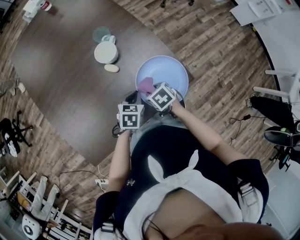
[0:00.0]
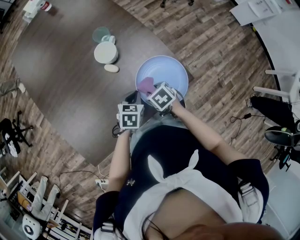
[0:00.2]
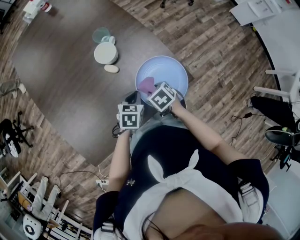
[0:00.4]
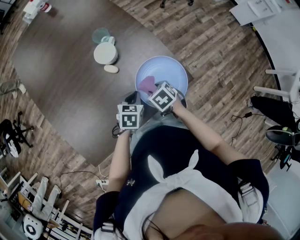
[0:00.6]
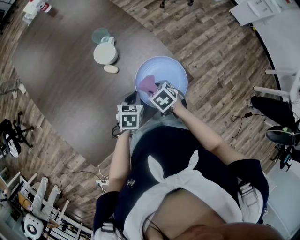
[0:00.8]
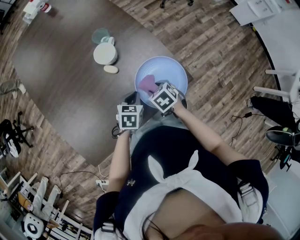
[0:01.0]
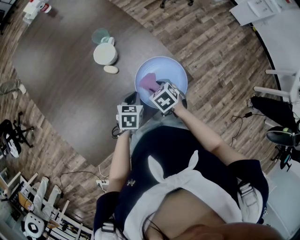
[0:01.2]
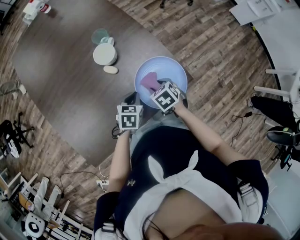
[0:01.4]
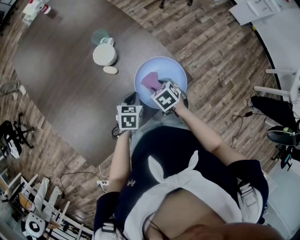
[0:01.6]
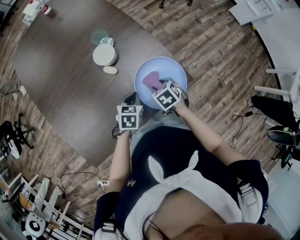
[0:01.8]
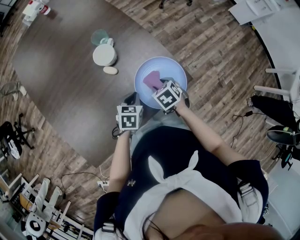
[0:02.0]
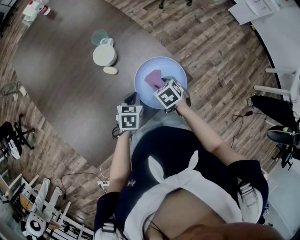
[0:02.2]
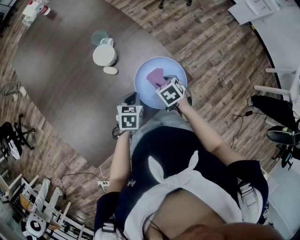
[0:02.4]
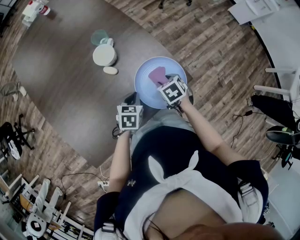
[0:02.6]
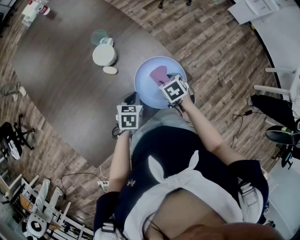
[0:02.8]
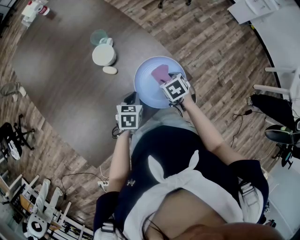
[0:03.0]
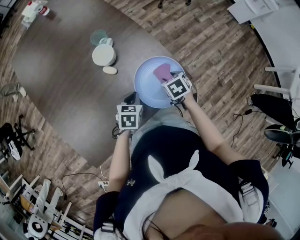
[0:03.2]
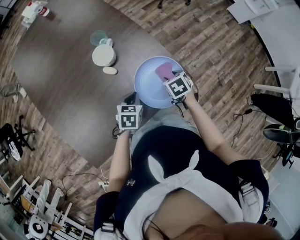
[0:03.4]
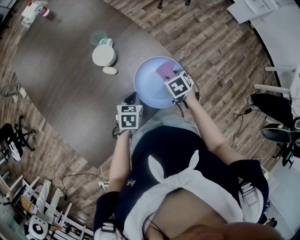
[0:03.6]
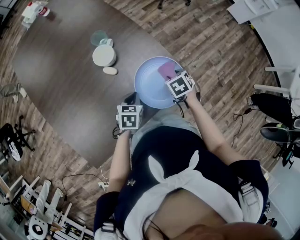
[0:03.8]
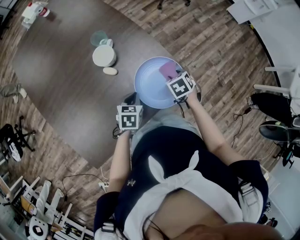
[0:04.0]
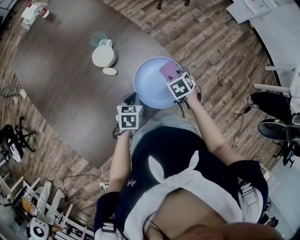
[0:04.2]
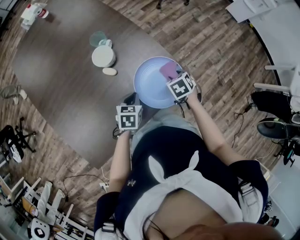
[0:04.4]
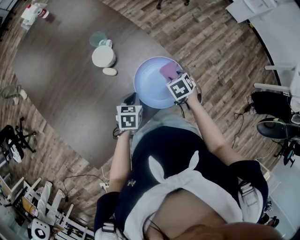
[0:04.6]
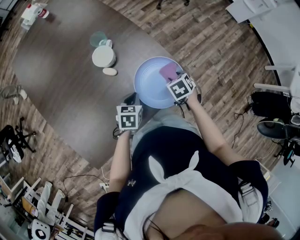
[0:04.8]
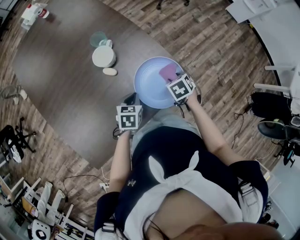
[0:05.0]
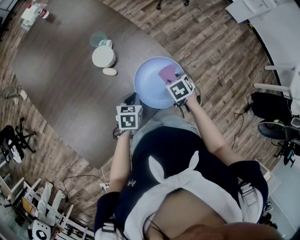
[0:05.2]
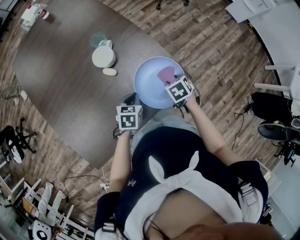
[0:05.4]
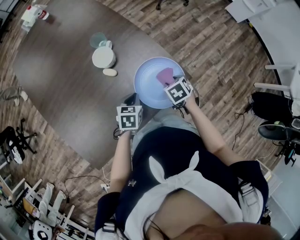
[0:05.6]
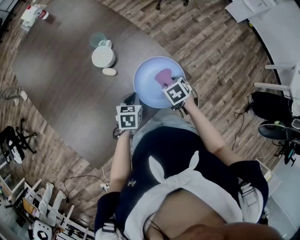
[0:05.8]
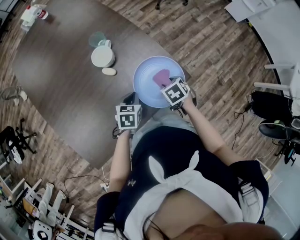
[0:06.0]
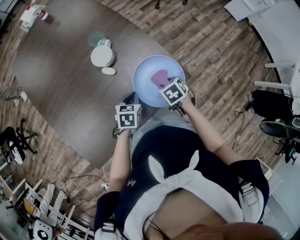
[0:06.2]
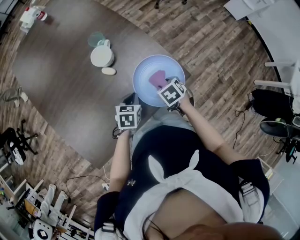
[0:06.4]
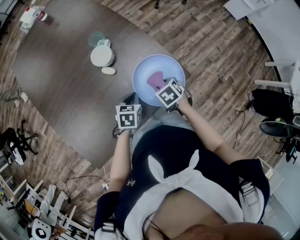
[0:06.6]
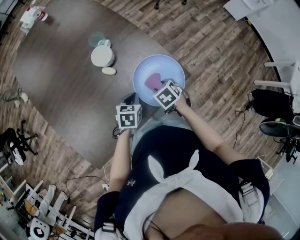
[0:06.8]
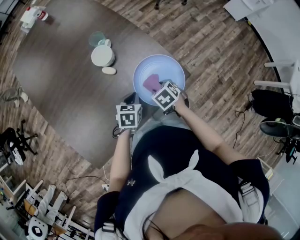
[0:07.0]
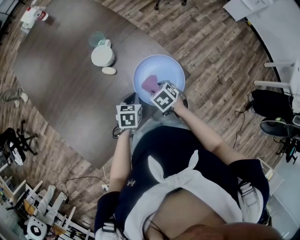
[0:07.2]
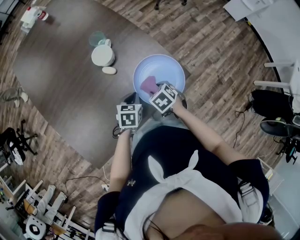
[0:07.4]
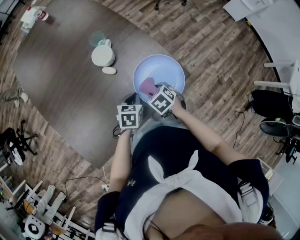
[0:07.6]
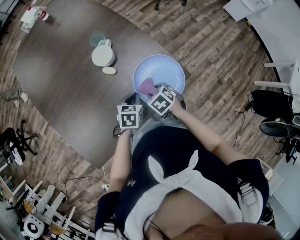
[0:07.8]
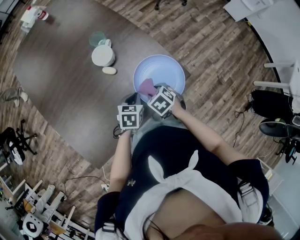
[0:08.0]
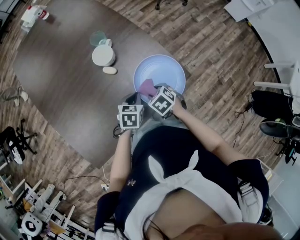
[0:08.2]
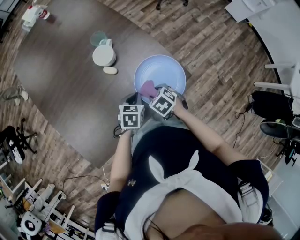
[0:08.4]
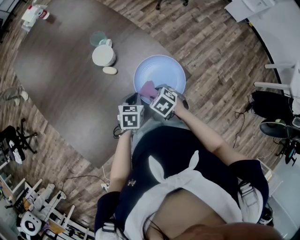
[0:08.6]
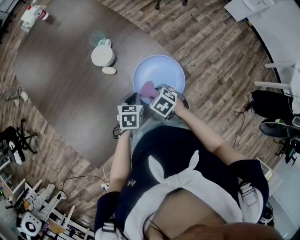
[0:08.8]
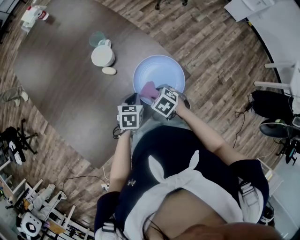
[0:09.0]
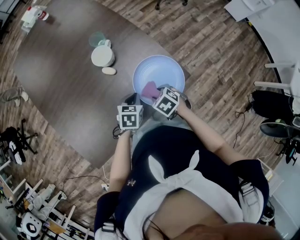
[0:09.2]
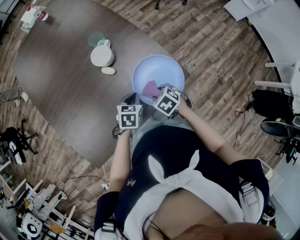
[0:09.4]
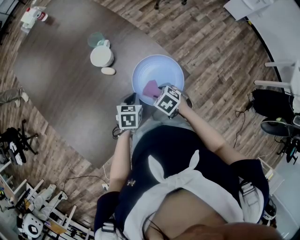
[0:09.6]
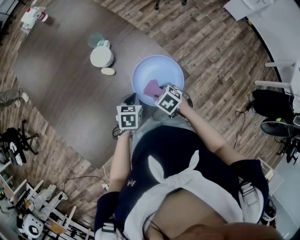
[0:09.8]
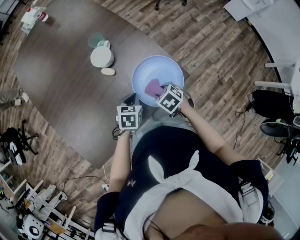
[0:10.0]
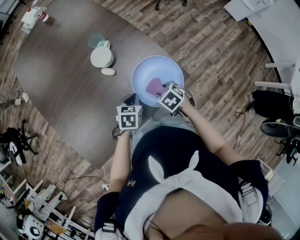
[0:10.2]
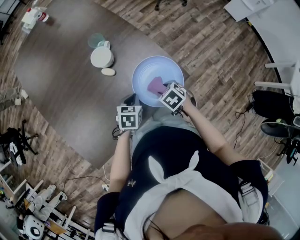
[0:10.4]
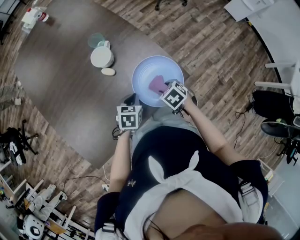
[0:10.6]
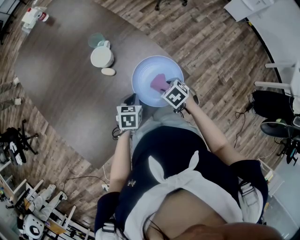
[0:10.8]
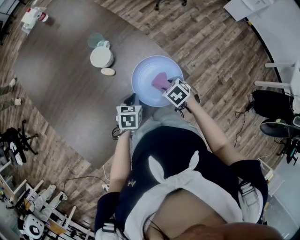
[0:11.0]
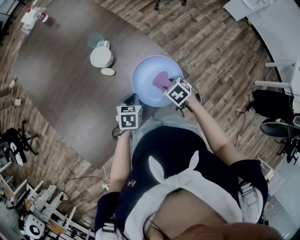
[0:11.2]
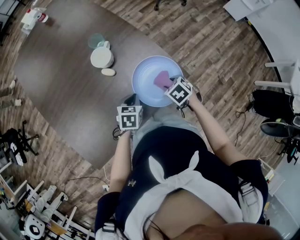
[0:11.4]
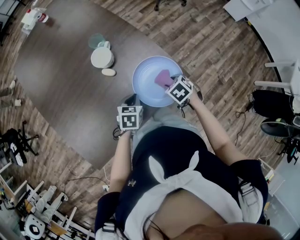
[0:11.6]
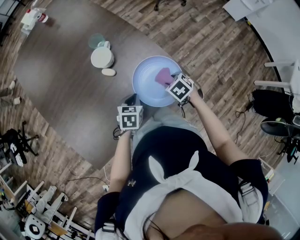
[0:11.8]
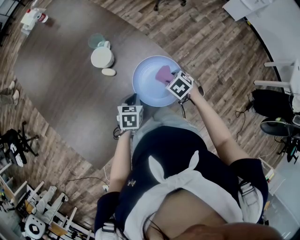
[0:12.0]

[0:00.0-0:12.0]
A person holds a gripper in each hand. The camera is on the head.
0:00.0 to 0:01.6: There are only small adjustments of the grippers.
0:01.6 to 0:03.0: The right gripper moves to the right, approximately 5 cm.
0:03.0 to 0:04.4: The grippers move only a little.
0:04.4 to 0:06.0: The right gripper moves some 5 cm.
0:06.0 to 0:07.6: The right gripper goes some 10 cm to the left.
0:07.6 to 0:09.0: The grippers stay close to where they were, moving slightly.
0:09.0 to 0:10.4: The right gripper shifts by roughly 5 cm.
0:10.4 to 0:12.0: The right gripper goes some 5 cm to the right.

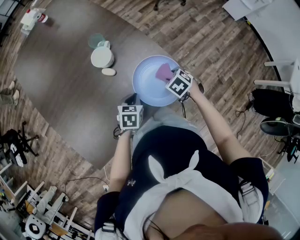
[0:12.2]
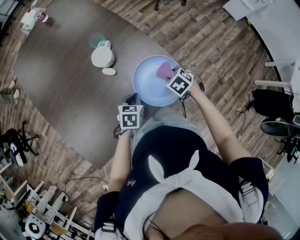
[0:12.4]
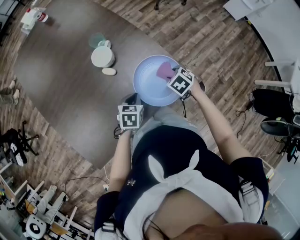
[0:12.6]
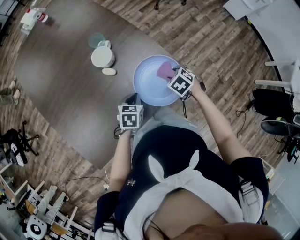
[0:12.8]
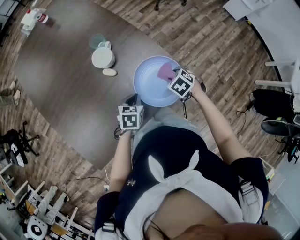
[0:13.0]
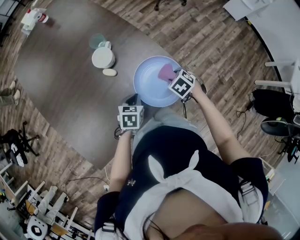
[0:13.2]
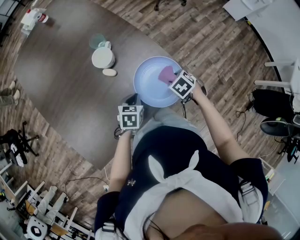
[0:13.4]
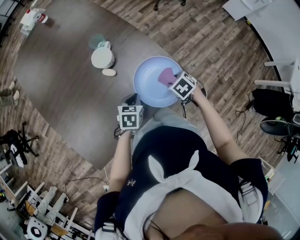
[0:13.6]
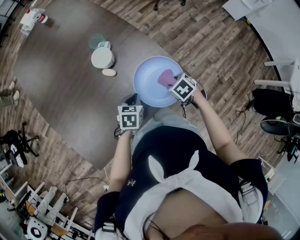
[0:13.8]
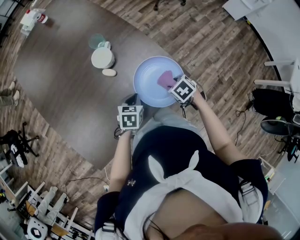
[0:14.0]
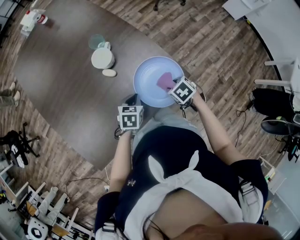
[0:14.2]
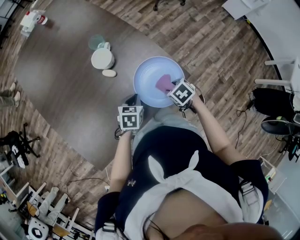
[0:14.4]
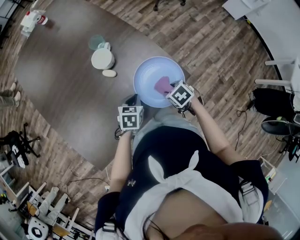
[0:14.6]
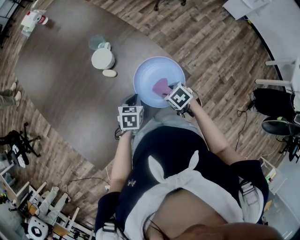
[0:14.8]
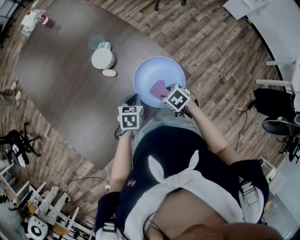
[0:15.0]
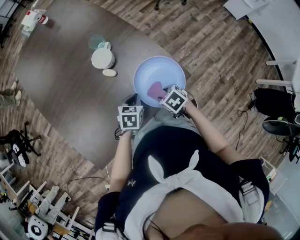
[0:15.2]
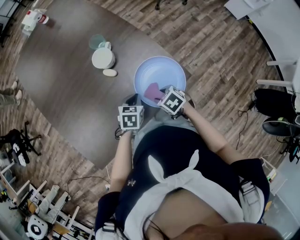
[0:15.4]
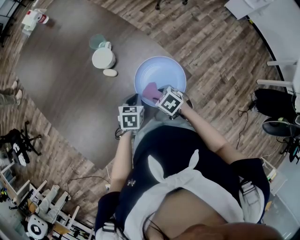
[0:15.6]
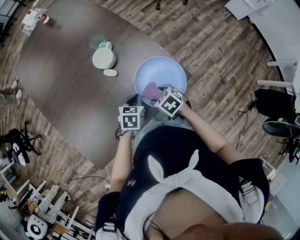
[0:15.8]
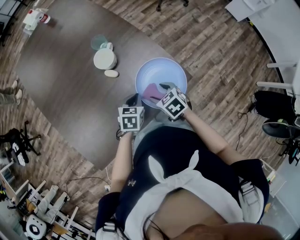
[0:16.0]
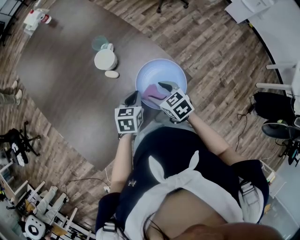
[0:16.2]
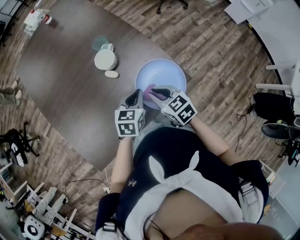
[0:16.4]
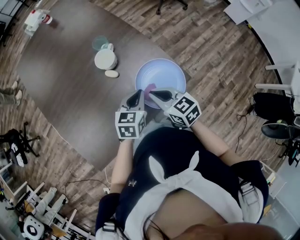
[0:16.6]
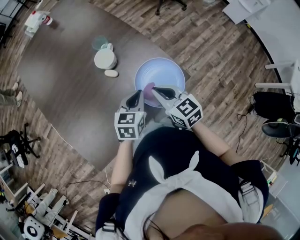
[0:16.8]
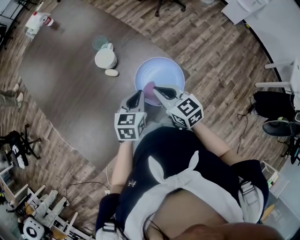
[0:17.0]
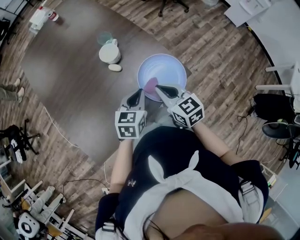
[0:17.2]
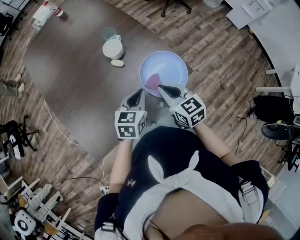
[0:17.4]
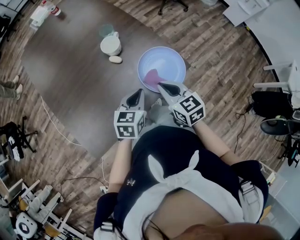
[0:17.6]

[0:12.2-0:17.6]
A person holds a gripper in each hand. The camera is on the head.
0:12.2 to 0:13.6: The grippers move only a little.
0:13.6 to 0:15.0: The right gripper moves roughly 5 cm.
0:15.0 to 0:16.2: The two grippers go roughly 5 cm upward. The right gripper turns by approximately 30 degrees.
0:16.2 to 0:17.6: The right gripper goes roughly 10 cm upward and backward, and closes its fingers; the left gripper heads backward and upward, covering about 10 cm.

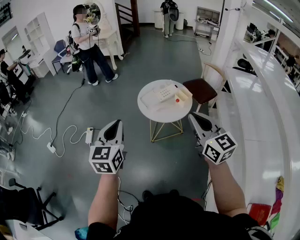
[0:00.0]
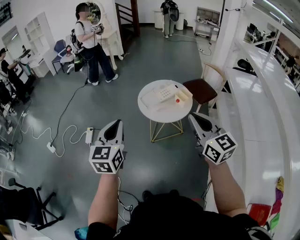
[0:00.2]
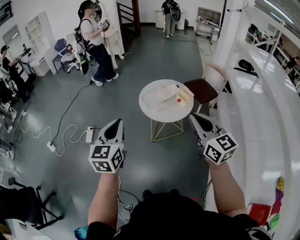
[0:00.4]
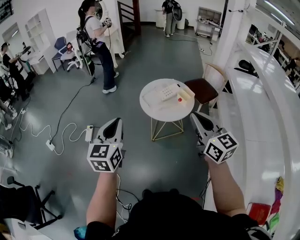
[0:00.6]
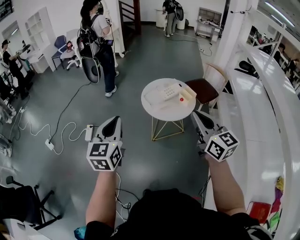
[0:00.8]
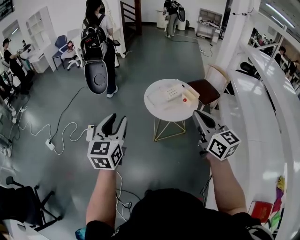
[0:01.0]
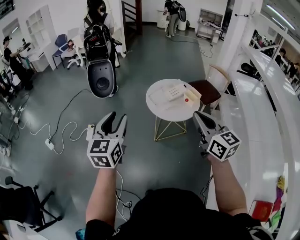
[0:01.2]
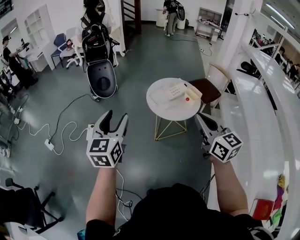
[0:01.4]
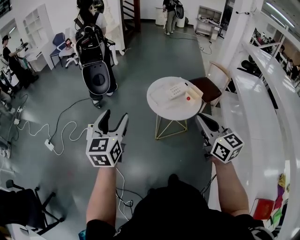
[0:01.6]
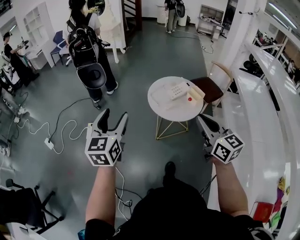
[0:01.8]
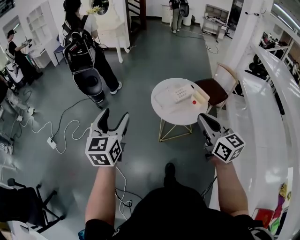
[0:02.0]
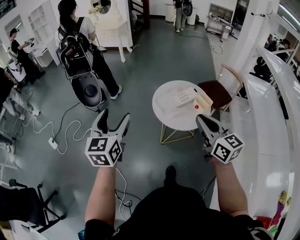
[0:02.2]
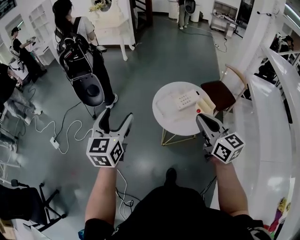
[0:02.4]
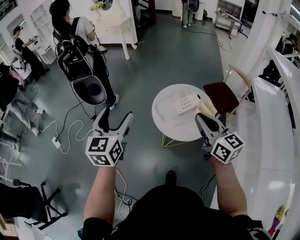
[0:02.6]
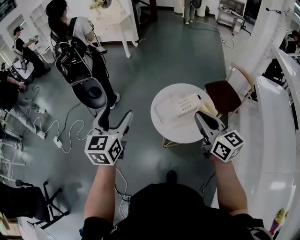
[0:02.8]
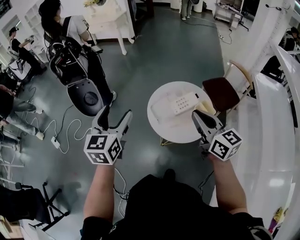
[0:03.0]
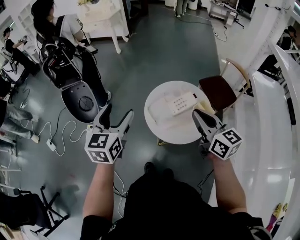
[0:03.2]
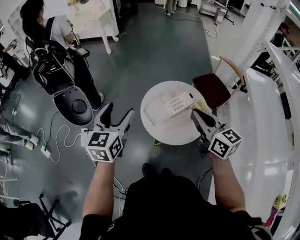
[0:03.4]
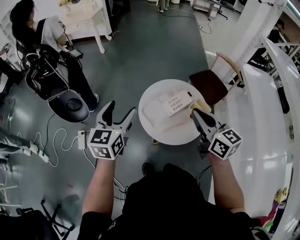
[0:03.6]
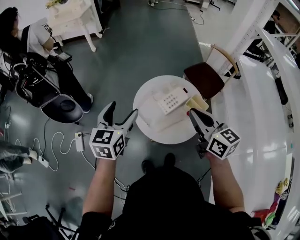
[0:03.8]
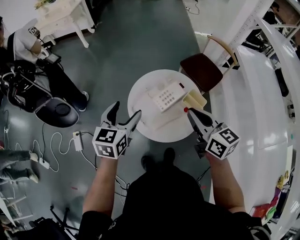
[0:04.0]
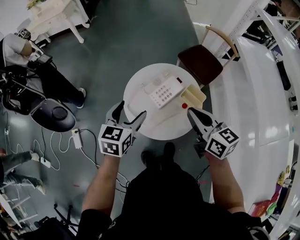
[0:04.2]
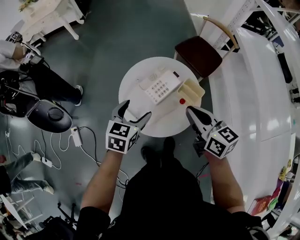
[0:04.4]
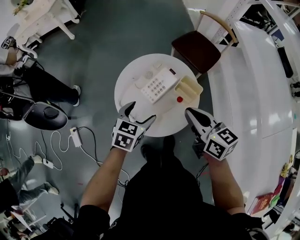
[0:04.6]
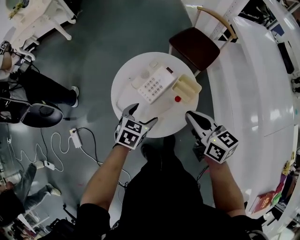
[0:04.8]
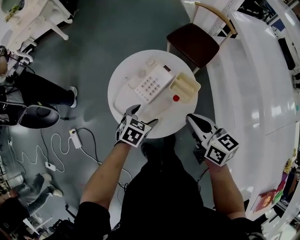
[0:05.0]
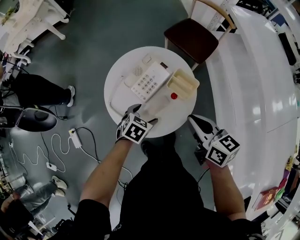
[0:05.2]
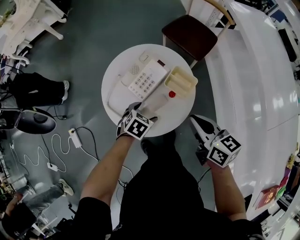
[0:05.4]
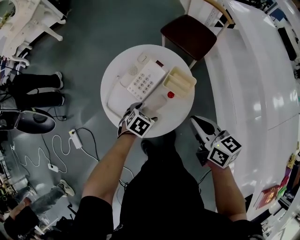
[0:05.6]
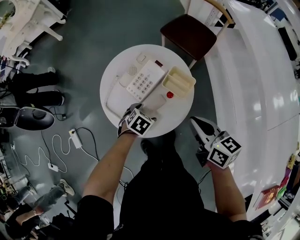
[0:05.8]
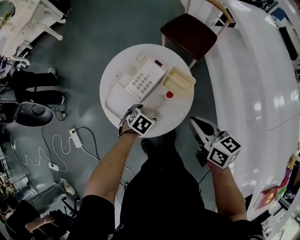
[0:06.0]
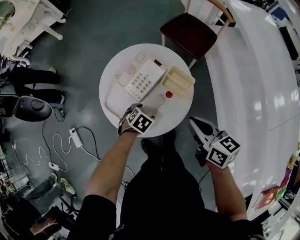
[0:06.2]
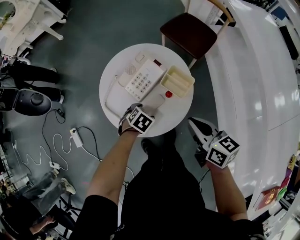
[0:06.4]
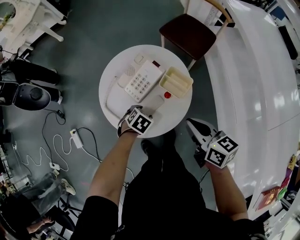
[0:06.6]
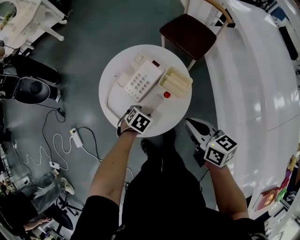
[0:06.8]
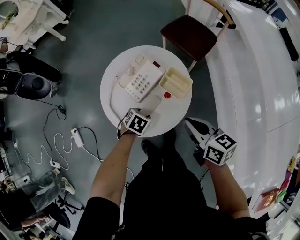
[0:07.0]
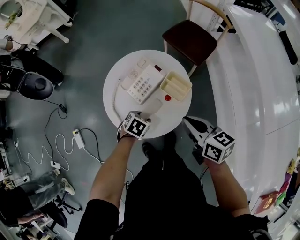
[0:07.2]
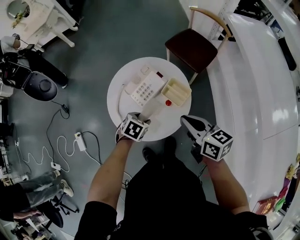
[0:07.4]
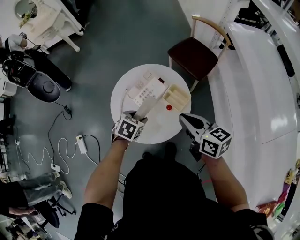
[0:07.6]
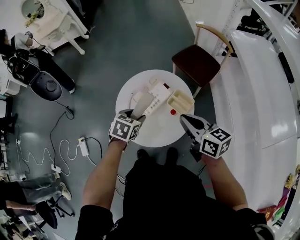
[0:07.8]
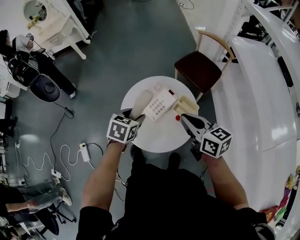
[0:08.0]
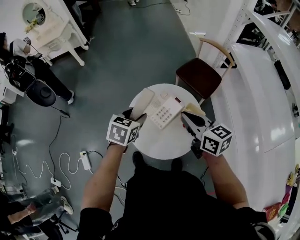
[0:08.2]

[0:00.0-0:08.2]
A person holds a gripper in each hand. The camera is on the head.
0:00.0 to 0:01.6: The two grippers go approximately 10 cm to the left. The left gripper opens its fingers.
0:01.6 to 0:03.2: The left gripper travels forward and to the right by approximately 30 cm. Meanwhile the right gripper shifts about 30 cm forward.
0:03.2 to 0:05.0: The left gripper goes about 35 cm downward, and tips its fingers downward by roughly 40 degrees; the right gripper goes roughly 15 cm downward, and turns by some 30 degrees.
0:05.0 to 0:06.6: The right gripper changes place by approximately 5 cm, while the left gripper shifts some 10 cm downward, and changes its angle by roughly 20 degrees.
0:06.6 to 0:08.2: The right gripper moves upward, to the left and forward, approximately 20 cm, while the left gripper heads upward and to the left, covering approximately 30 cm, and swivels roughly 30 degrees.
